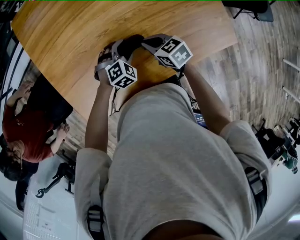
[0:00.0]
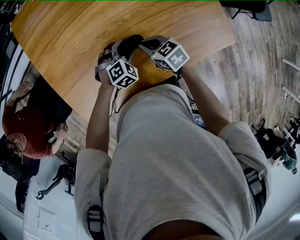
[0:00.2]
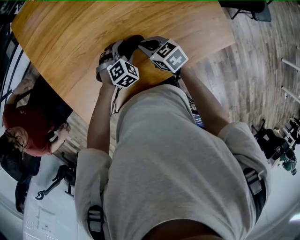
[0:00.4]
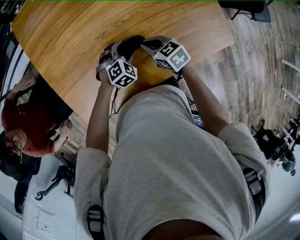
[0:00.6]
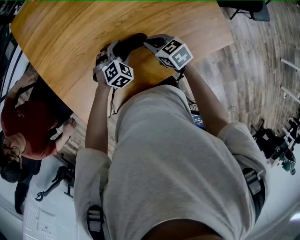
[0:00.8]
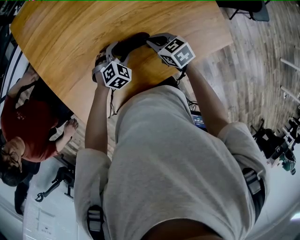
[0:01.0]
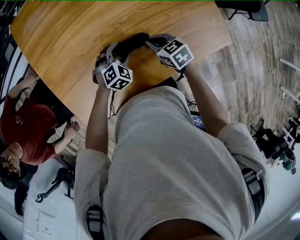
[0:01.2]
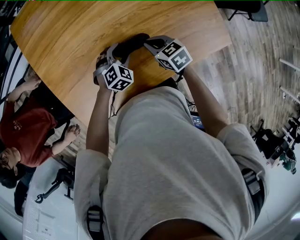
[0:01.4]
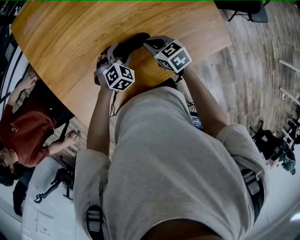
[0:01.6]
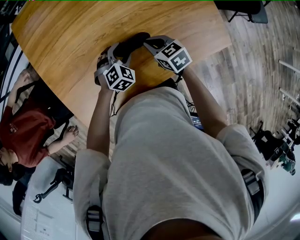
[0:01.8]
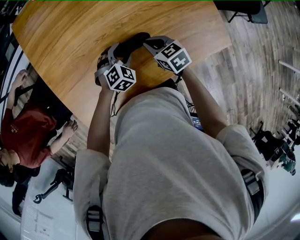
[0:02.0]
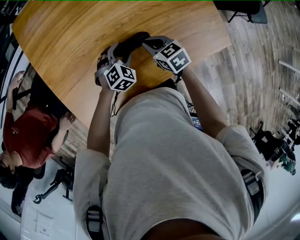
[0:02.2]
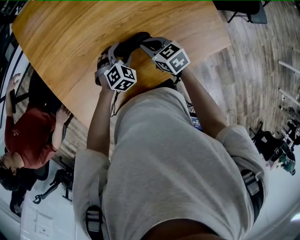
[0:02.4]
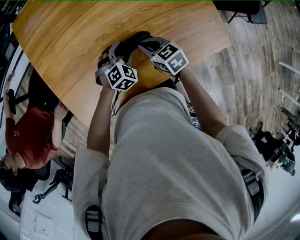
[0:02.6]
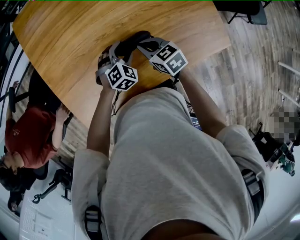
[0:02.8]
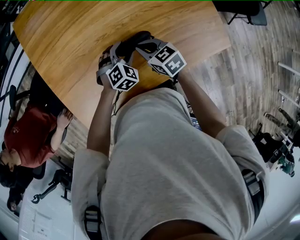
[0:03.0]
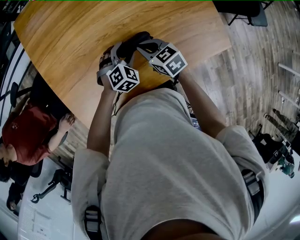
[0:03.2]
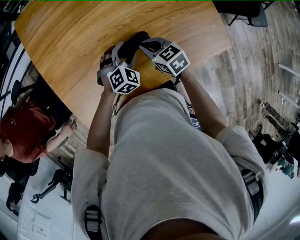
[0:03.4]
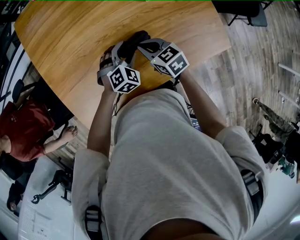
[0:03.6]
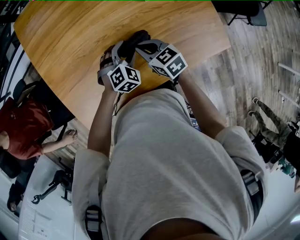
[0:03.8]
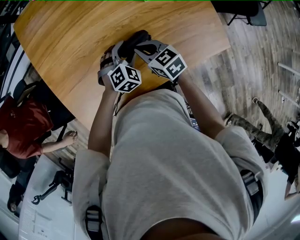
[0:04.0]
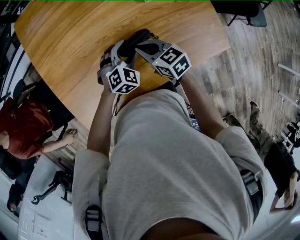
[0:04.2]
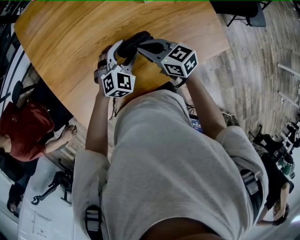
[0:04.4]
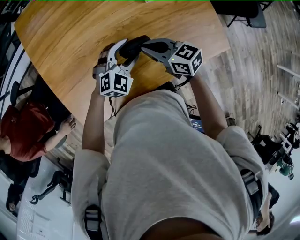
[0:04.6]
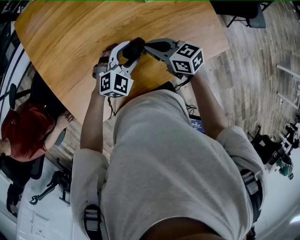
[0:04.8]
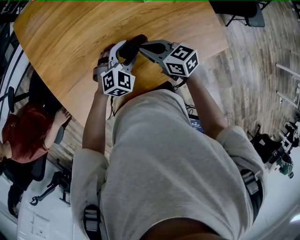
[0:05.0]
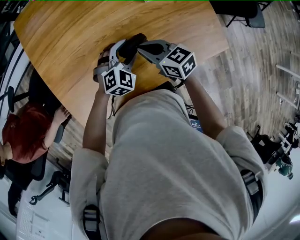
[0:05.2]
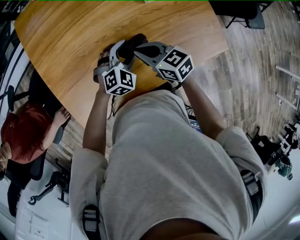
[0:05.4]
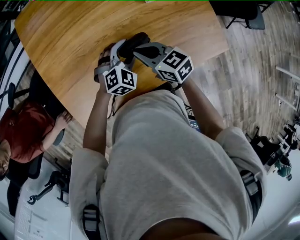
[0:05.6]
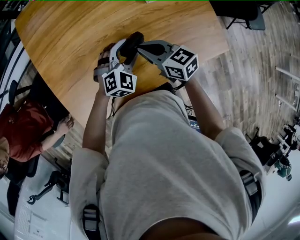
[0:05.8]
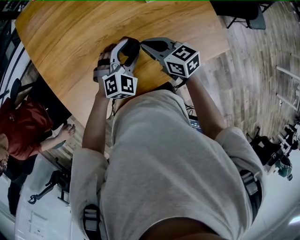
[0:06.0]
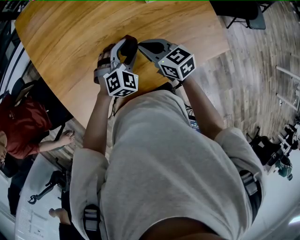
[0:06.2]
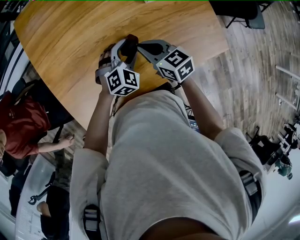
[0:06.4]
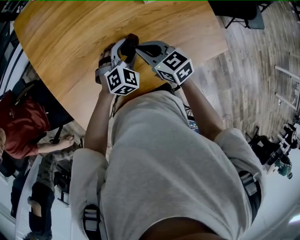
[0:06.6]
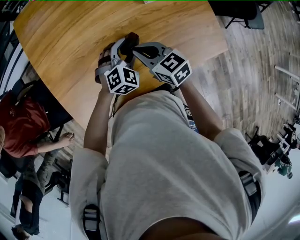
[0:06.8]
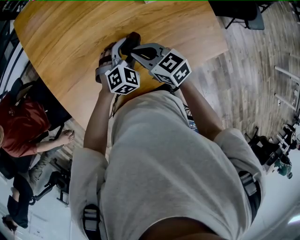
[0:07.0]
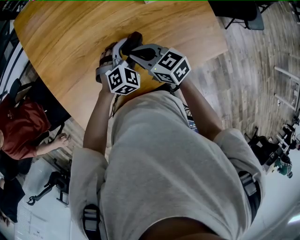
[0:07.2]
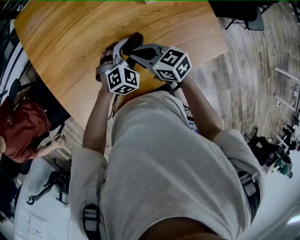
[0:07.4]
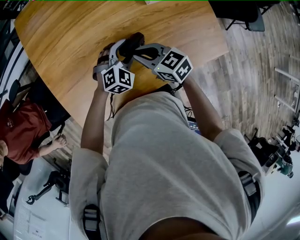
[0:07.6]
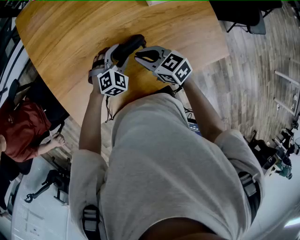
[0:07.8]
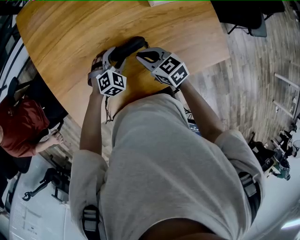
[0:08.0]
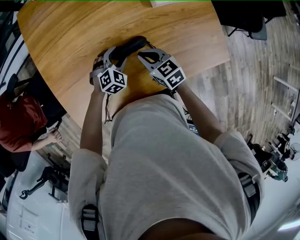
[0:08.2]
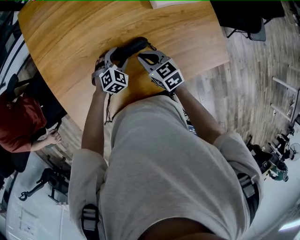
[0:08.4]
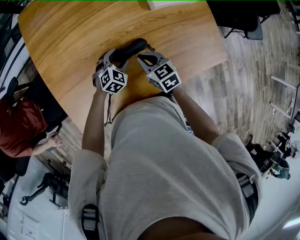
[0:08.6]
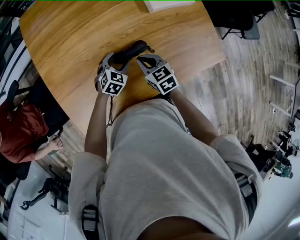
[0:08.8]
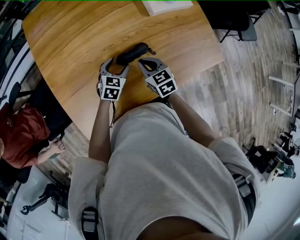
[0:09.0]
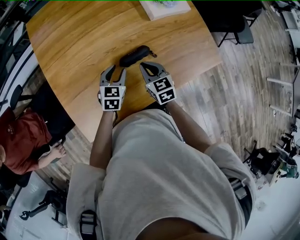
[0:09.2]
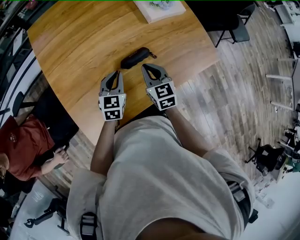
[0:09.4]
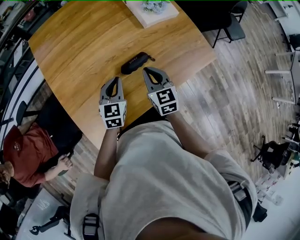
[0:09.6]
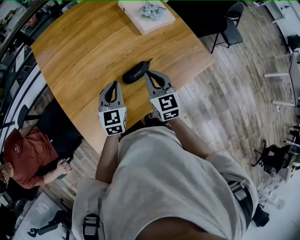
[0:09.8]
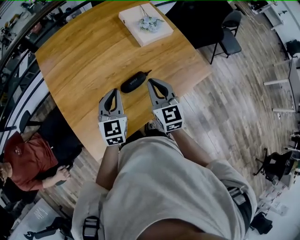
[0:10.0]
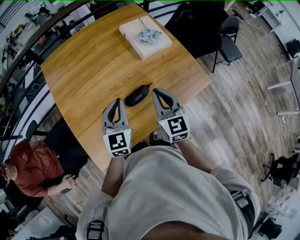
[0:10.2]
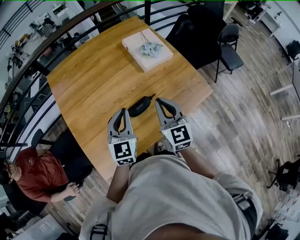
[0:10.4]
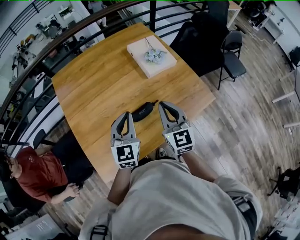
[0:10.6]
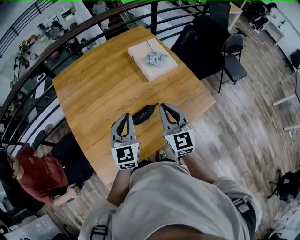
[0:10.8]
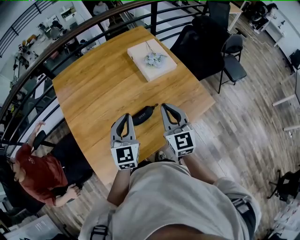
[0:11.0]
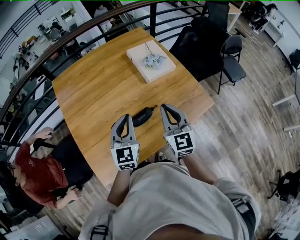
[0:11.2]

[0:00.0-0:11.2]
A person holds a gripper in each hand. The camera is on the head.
0.0 to 3.2 s: The grippers stay close to where they were, moving slightly.
3.2 to 4.8 s: The grippers both shift upward by about 5 cm. The left gripper turns by about 20 degrees.
4.8 to 6.4 s: There are only small adjustments of the grippers.
6.4 to 8.0 s: The left gripper heads downward and to the left, covering some 10 cm.
8.0 to 9.6 s: The right gripper heads upward, covering approximately 10 cm, and rotates roughly 40 degrees, while the left gripper travels upward and to the left by roughly 15 cm, changes its angle by approximately 50 degrees, and closes up.
9.6 to 11.2 s: The right gripper travels upward and to the right by roughly 15 cm. Meanwhile the left gripper is displaced upward by about 15 cm.

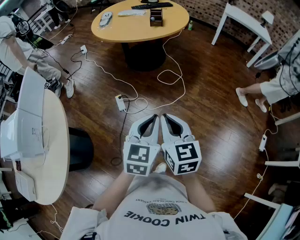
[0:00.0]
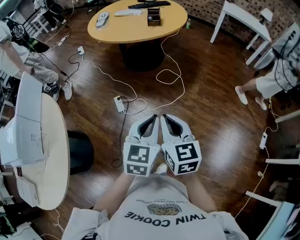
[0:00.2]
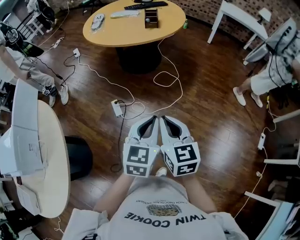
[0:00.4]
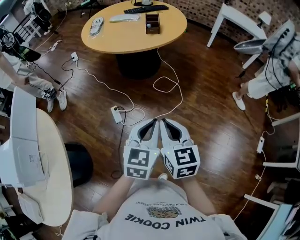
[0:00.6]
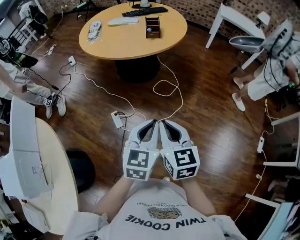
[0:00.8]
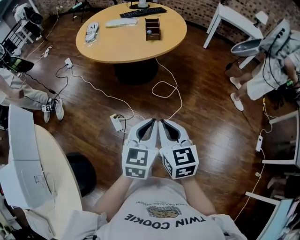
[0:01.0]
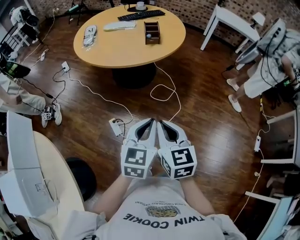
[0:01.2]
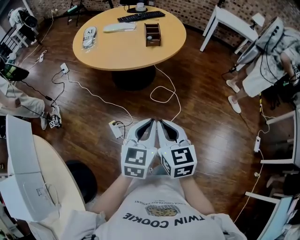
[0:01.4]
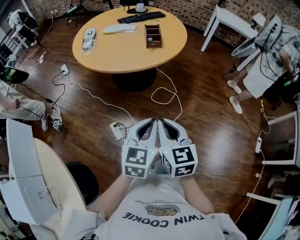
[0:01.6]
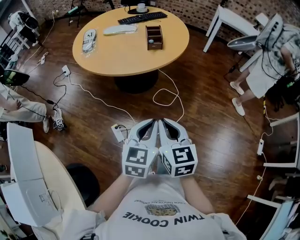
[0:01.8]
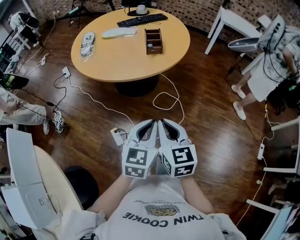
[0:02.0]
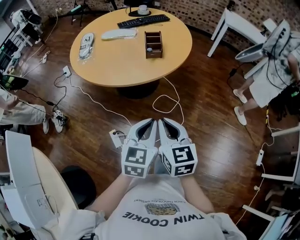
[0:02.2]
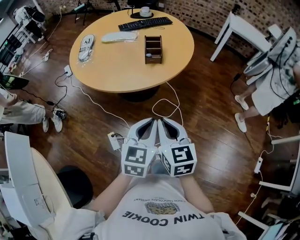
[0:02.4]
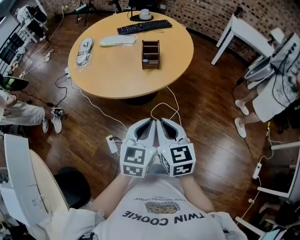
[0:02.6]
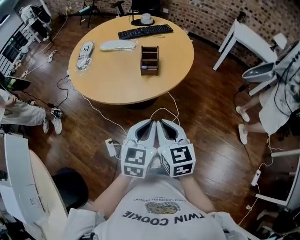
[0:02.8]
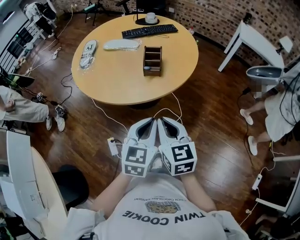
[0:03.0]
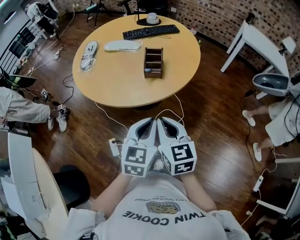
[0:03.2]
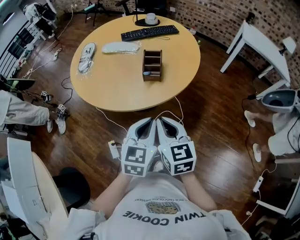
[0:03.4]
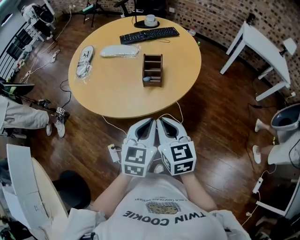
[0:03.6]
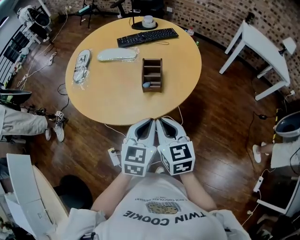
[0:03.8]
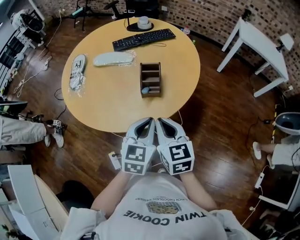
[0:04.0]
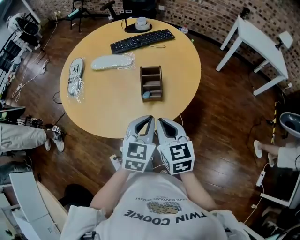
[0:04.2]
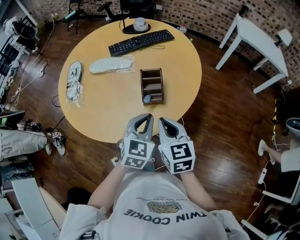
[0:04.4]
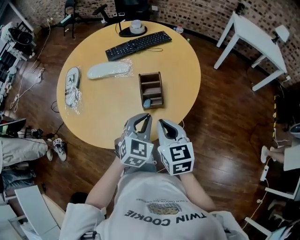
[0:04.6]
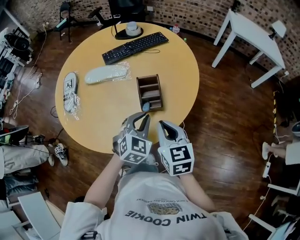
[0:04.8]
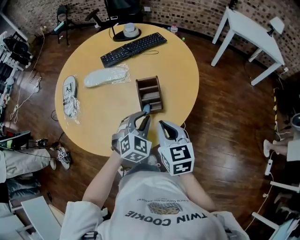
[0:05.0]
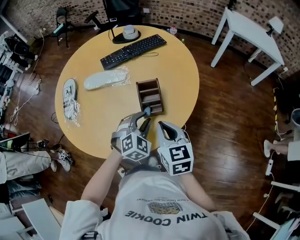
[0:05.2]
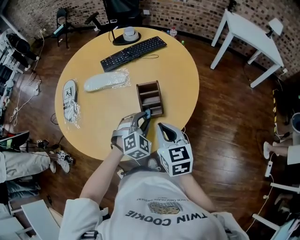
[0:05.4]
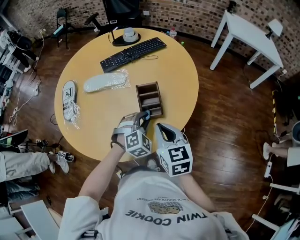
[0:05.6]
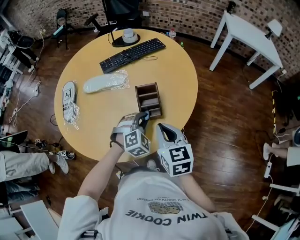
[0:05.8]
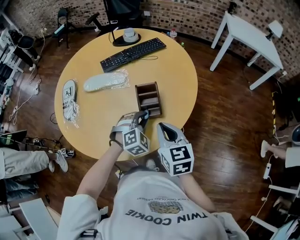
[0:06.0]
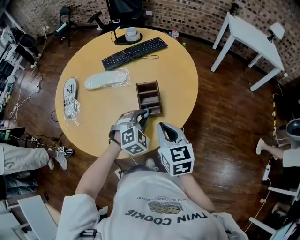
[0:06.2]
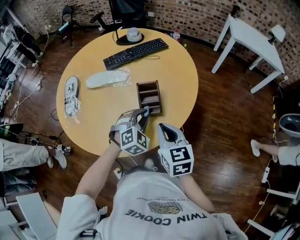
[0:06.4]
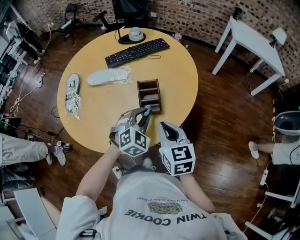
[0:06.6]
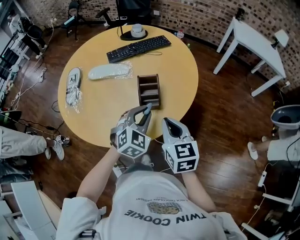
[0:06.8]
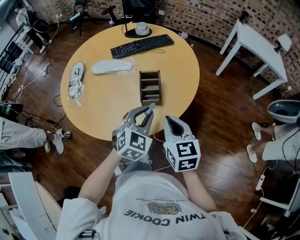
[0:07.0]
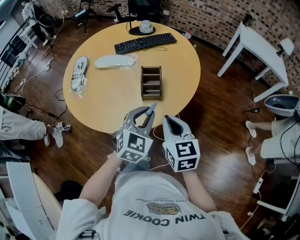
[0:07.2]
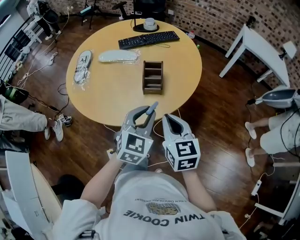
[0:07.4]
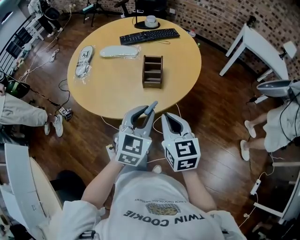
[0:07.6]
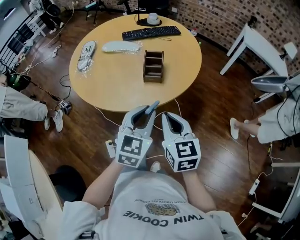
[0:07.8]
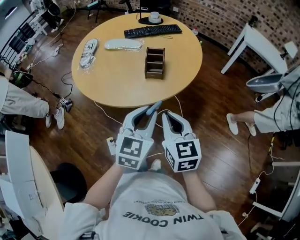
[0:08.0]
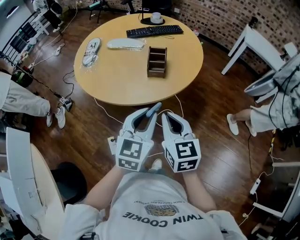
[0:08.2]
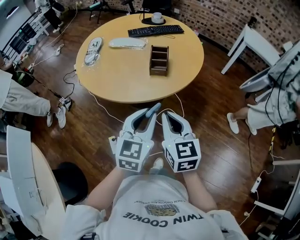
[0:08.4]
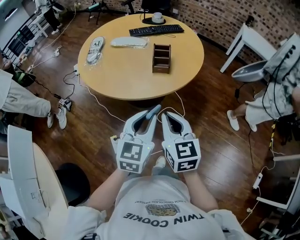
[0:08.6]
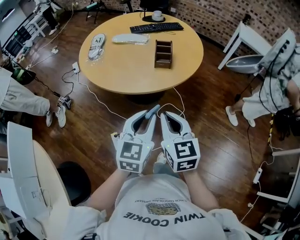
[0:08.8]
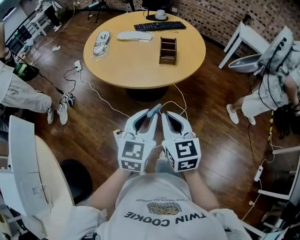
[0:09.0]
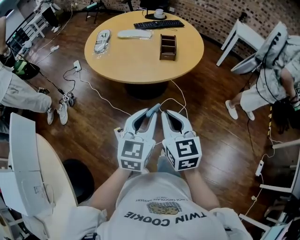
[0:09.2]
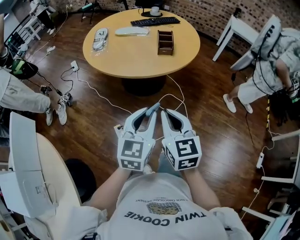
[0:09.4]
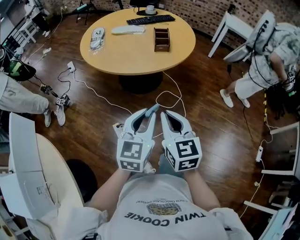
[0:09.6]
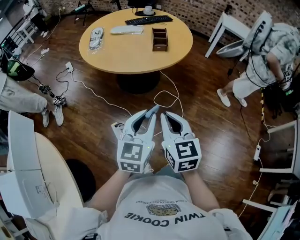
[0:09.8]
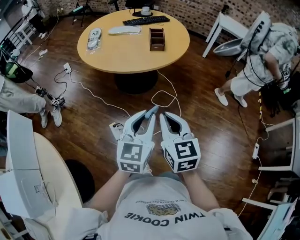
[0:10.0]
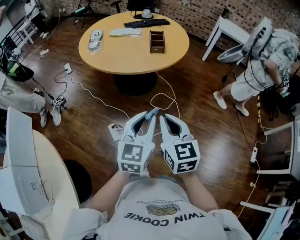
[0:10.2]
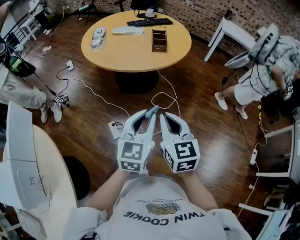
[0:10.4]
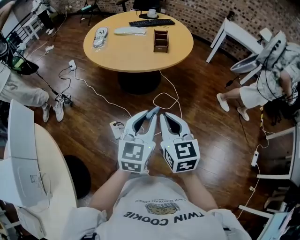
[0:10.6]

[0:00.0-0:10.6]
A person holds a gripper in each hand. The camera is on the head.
0.0 to 1.6 s: The grippers both shift forward and to the left by about 30 cm.
1.6 to 3.0 s: The two grippers go some 30 cm forward and to the right.
3.0 to 4.6 s: The grippers both shift forward by approximately 25 cm. The left gripper swivels approximately 30 degrees.
4.6 to 6.0 s: The left gripper moves downward and forward, roughly 10 cm, and turns by about 40 degrees.
6.0 to 7.6 s: The right gripper is displaced backward by approximately 15 cm, while the left gripper travels backward and upward by about 25 cm, and rolls counterclockwise, seen from behind, by approximately 40 degrees.
7.6 to 9.0 s: The grippers both shift backward and to the left by roughly 25 cm.
9.0 to 10.6 s: Both grippers move backward, some 15 cm.

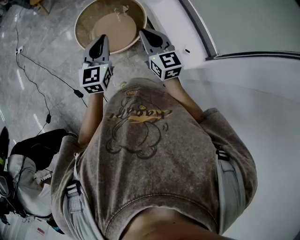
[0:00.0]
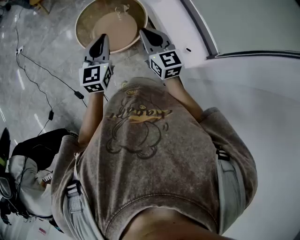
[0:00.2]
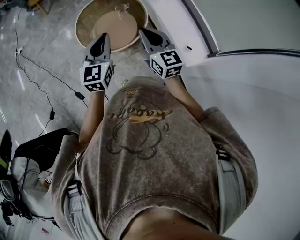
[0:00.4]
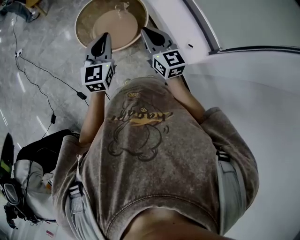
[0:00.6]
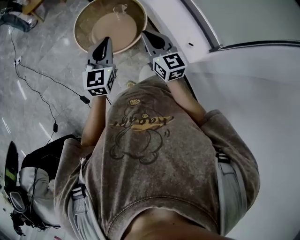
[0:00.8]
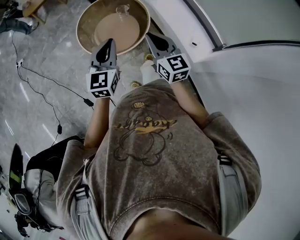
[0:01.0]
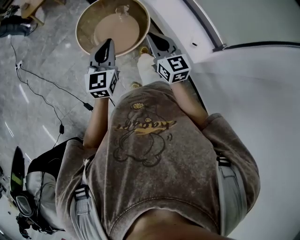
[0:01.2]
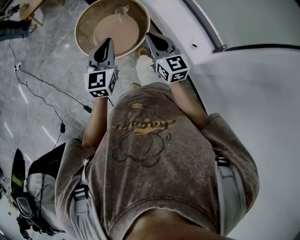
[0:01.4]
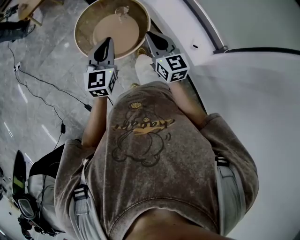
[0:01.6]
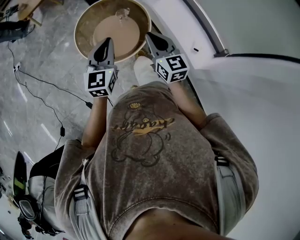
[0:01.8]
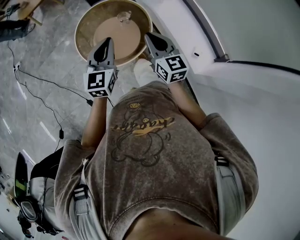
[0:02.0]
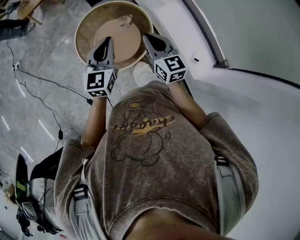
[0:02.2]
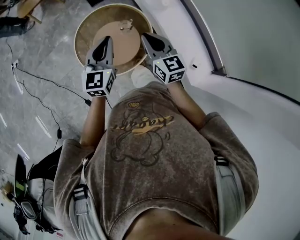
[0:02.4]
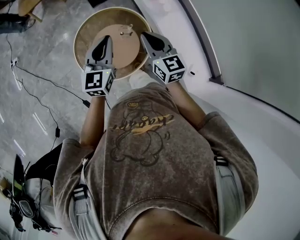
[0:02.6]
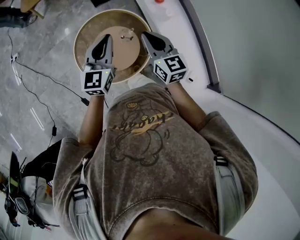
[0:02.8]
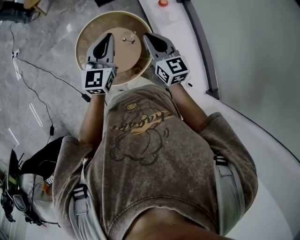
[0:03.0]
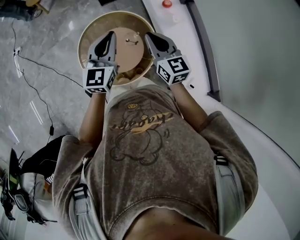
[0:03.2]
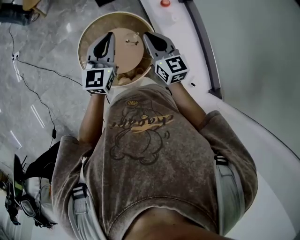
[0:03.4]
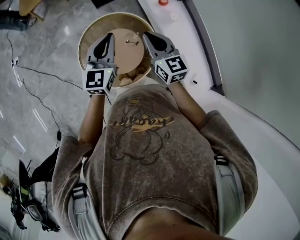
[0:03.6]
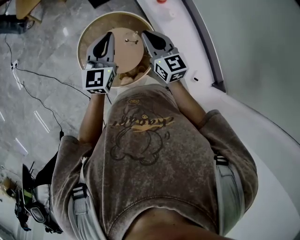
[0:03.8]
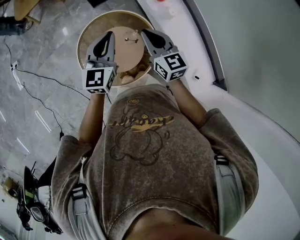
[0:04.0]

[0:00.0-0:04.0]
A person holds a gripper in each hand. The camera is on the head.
0.0 to 1.4 s: The left gripper moves approximately 5 cm. Meanwhile the right gripper ends up roughly 5 cm from where it was.
1.4 to 2.6 s: The two grippers go roughly 20 cm forward.
2.6 to 4.0 s: The grippers both shift forward by about 10 cm.
